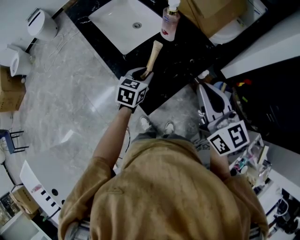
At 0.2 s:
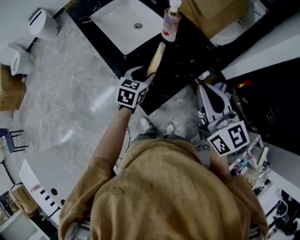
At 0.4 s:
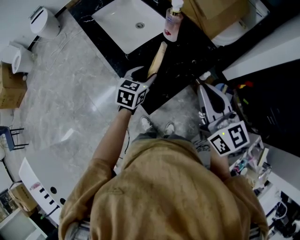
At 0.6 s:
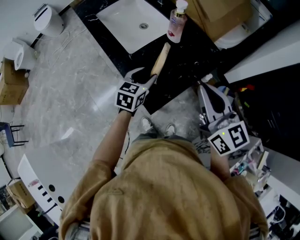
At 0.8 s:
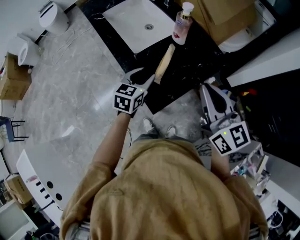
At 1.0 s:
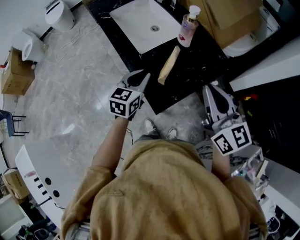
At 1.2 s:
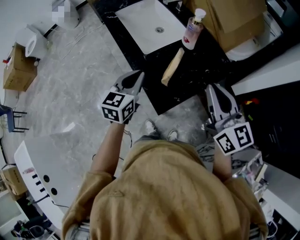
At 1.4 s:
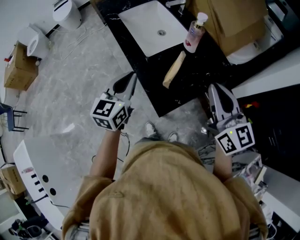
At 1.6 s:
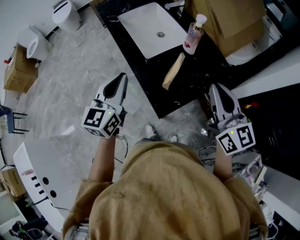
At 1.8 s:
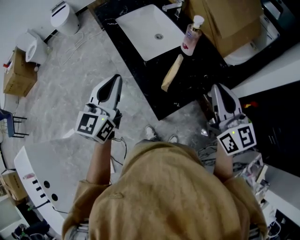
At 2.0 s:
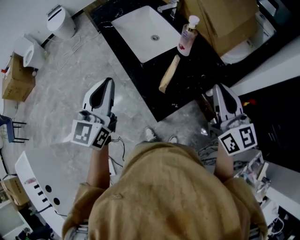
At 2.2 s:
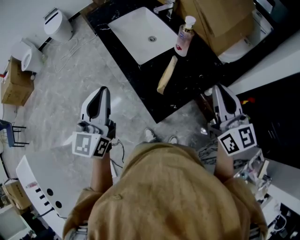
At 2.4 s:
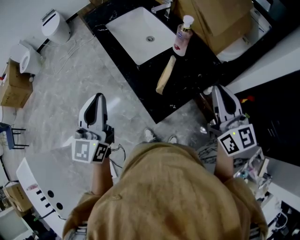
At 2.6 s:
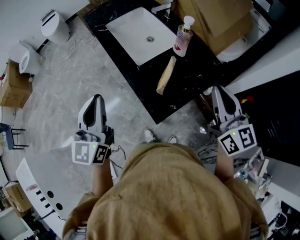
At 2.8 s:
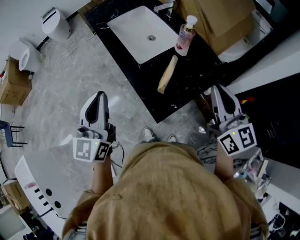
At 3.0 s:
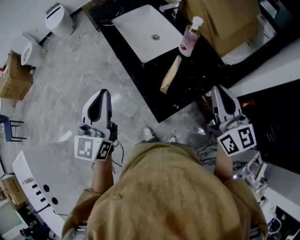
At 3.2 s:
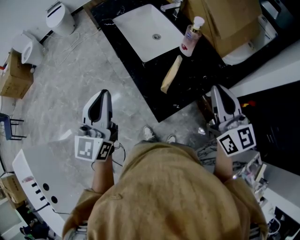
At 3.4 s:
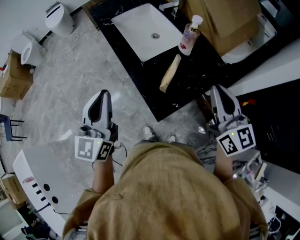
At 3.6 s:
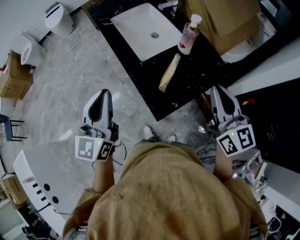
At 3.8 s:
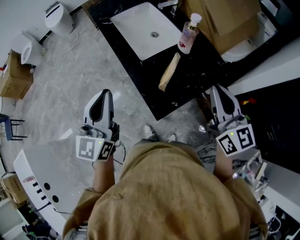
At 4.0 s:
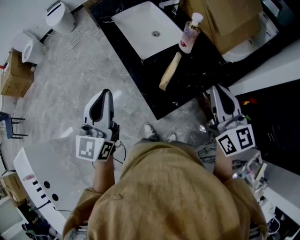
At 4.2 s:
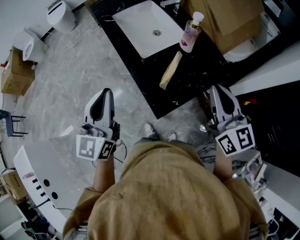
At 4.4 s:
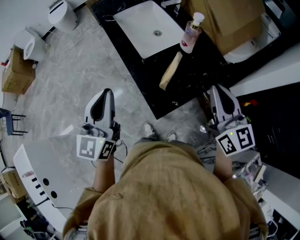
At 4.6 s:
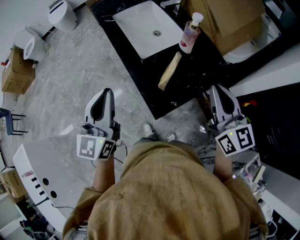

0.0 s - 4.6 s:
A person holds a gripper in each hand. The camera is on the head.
0.0 s - 1.6 s: The left gripper moves upward and to the left, approximately 25 cm, changes its angle by about 40 degrees, and opens, then closes once more.
1.6 s - 3.0 s: The left gripper ends up about 5 cm from where it was.
3.0 s - 4.6 s: There are only small adjustments of the grippers.

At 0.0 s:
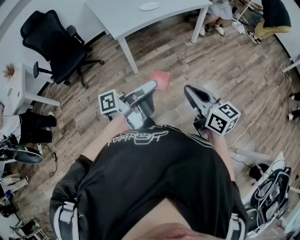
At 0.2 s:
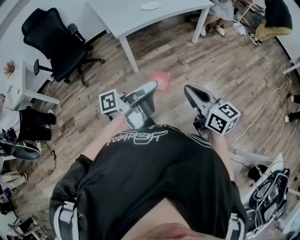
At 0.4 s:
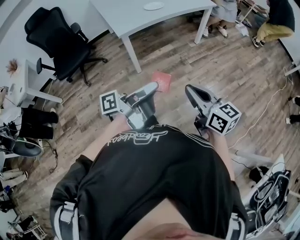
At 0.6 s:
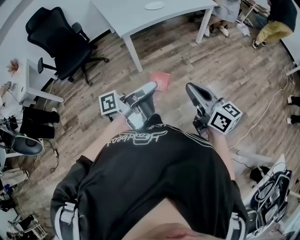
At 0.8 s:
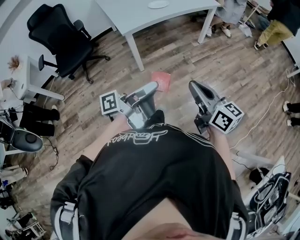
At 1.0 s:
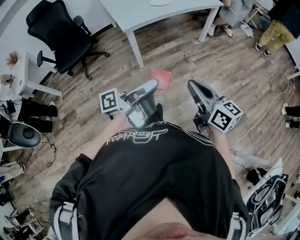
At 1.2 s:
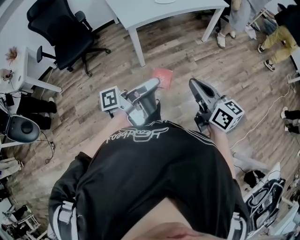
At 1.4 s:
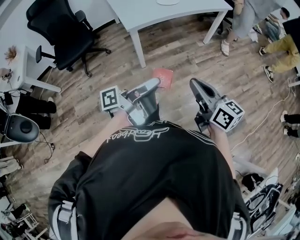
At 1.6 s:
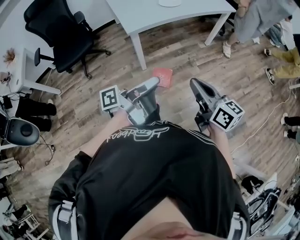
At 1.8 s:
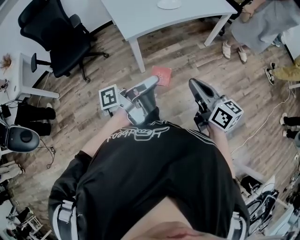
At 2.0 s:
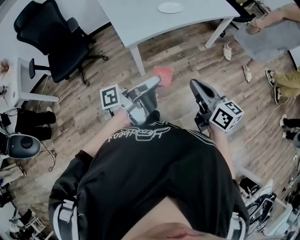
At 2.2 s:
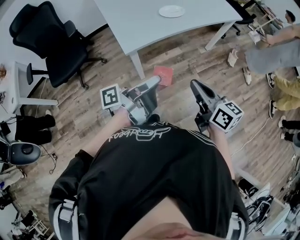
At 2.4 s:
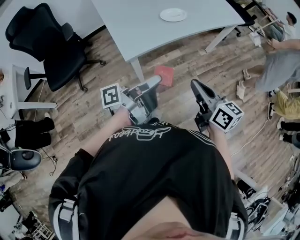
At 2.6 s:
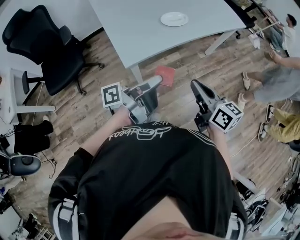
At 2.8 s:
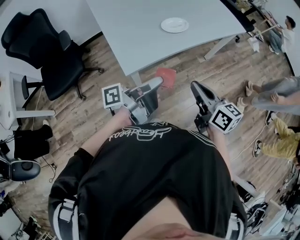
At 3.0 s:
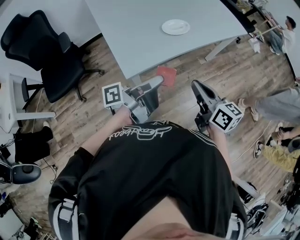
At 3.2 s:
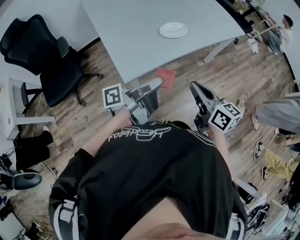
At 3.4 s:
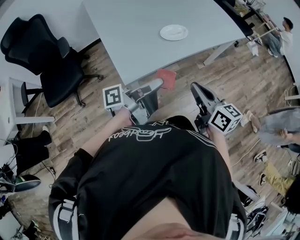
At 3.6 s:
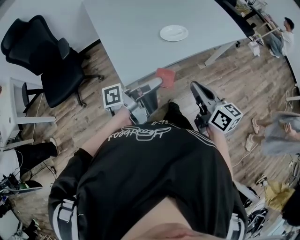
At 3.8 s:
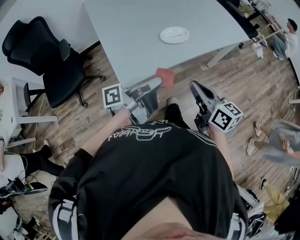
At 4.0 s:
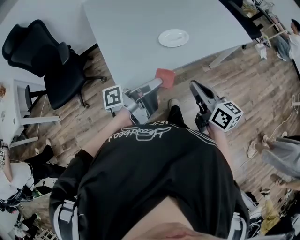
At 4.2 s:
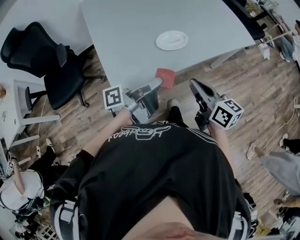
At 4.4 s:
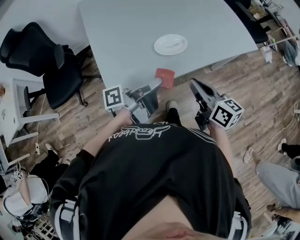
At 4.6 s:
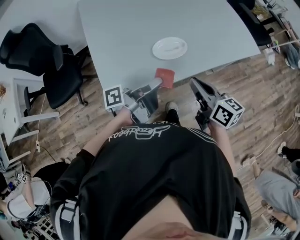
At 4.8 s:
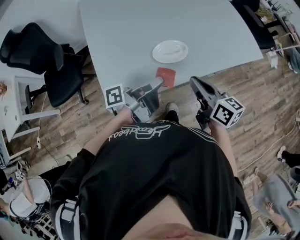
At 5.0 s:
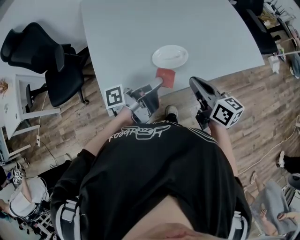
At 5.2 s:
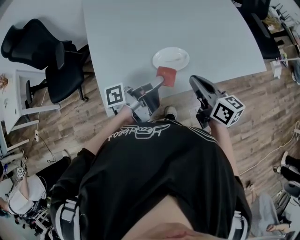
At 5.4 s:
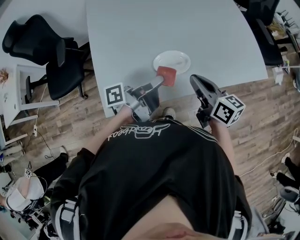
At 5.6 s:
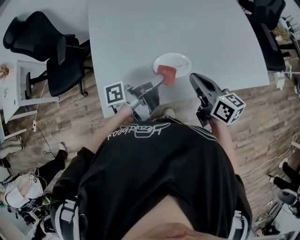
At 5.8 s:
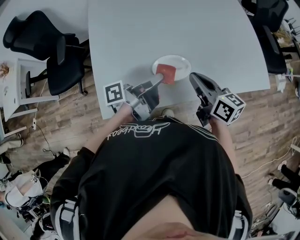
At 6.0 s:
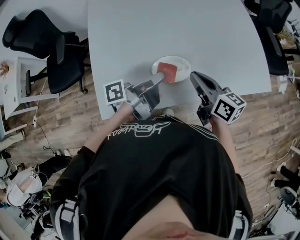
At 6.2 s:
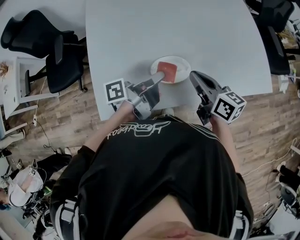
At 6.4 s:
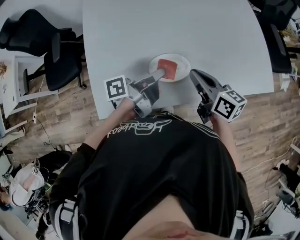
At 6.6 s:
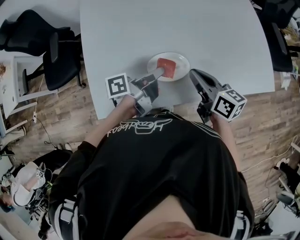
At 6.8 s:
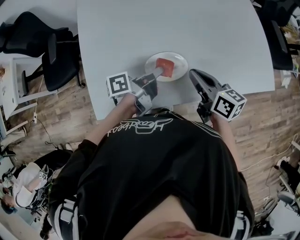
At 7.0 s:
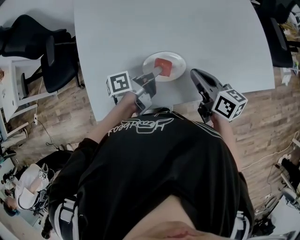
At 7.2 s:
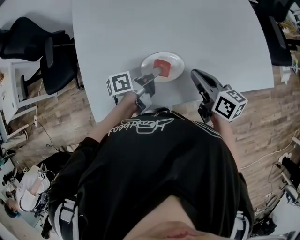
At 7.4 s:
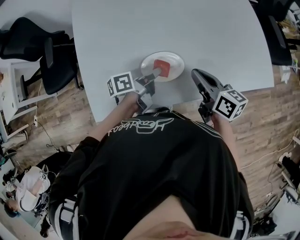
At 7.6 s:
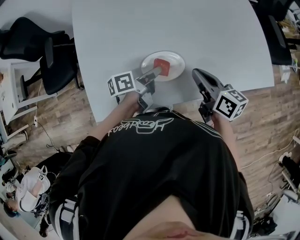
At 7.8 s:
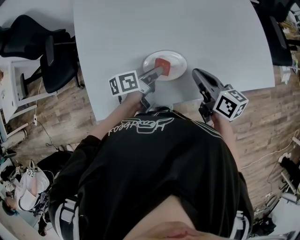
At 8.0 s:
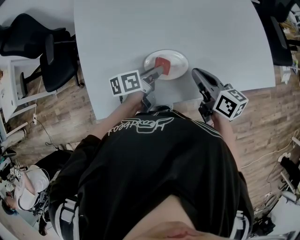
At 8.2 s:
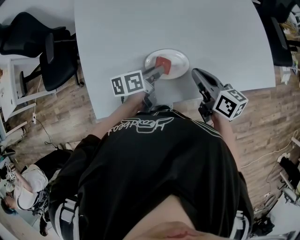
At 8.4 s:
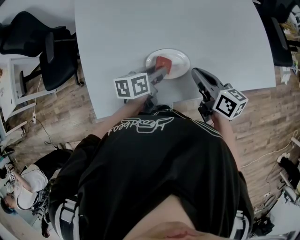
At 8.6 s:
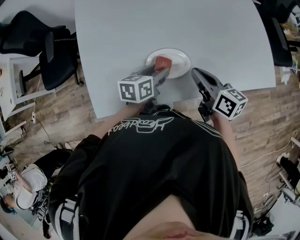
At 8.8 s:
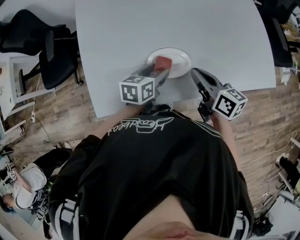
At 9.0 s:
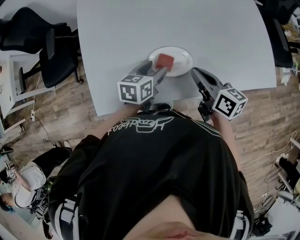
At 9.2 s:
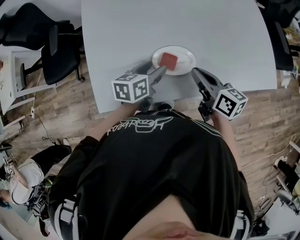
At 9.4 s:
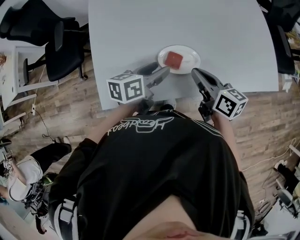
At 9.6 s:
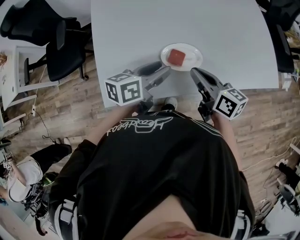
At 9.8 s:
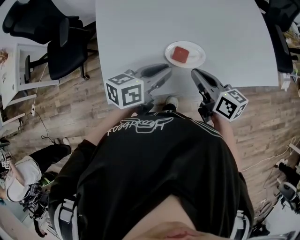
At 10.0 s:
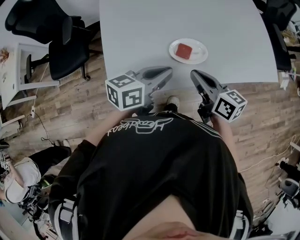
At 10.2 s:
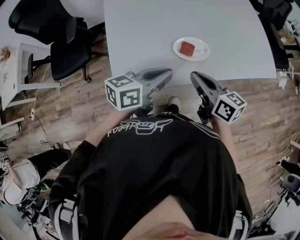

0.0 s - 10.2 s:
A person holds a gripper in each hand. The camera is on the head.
0.0 s - 1.4 s: The left gripper changes place by approximately 5 cm, while the right gripper is displaced forward by some 5 cm.
1.4 s - 3.0 s: The two grippers go roughly 35 cm forward.
3.0 s - 4.4 s: Both grippers move forward, approximately 15 cm.
4.4 s - 5.8 s: The two grippers go some 15 cm forward.
5.8 s - 7.2 s: The left gripper shifts about 10 cm downward, and changes its angle by roughly 20 degrees; the right gripper is displaced downward by roughly 5 cm.
7.2 s - 8.8 s: The left gripper rotates around the line of its fingers by approximately 40 degrees, clockwise from behind, and opens its fingers.
8.8 s - 10.2 s: The left gripper shifts about 20 cm upward, backward and to the left, turns by about 30 degrees, and closes its fingers; the right gripper moves backward, to the left and upward, roughly 15 cm.

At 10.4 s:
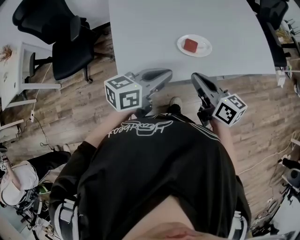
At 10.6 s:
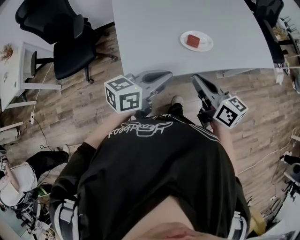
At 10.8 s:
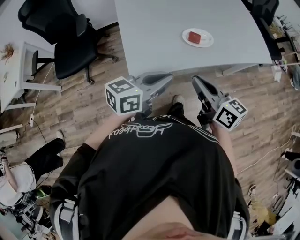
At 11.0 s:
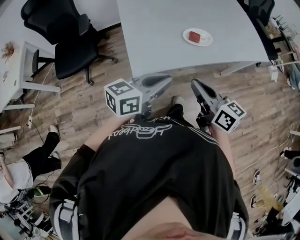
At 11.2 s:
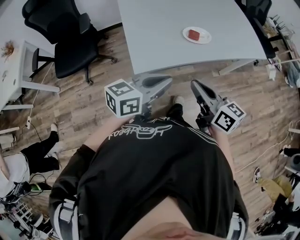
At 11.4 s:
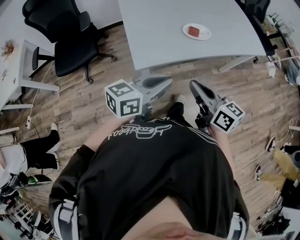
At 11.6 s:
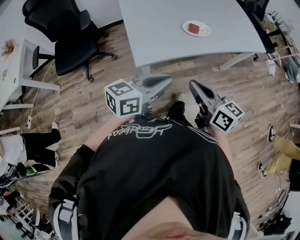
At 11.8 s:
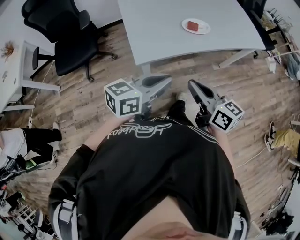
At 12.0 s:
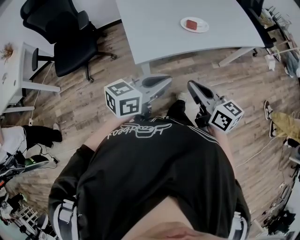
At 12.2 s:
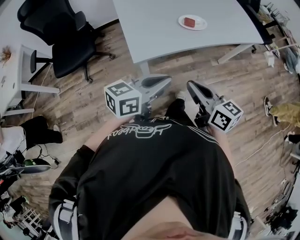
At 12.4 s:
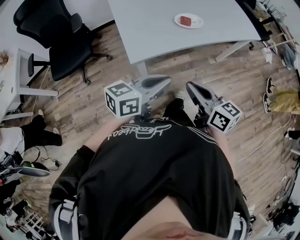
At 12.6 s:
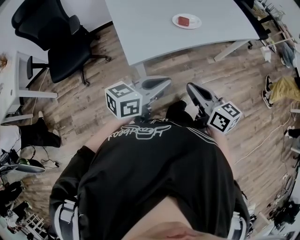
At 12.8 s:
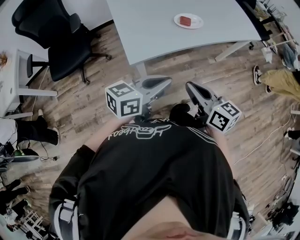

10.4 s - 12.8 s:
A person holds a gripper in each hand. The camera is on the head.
10.4 s - 11.6 s: Both grippers travel together backward, about 20 cm.
11.6 s - 12.8 s: The grippers stay close to where they were, moving slightly.

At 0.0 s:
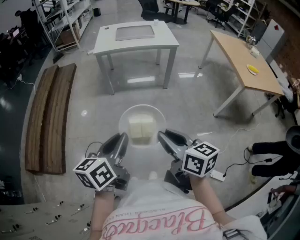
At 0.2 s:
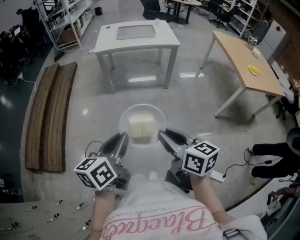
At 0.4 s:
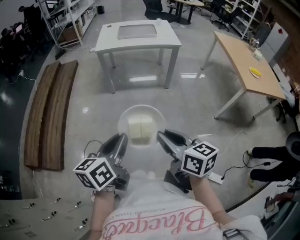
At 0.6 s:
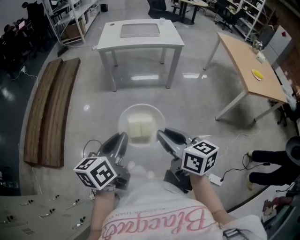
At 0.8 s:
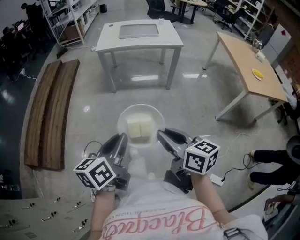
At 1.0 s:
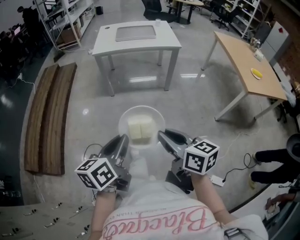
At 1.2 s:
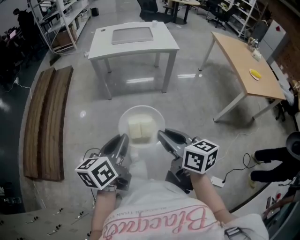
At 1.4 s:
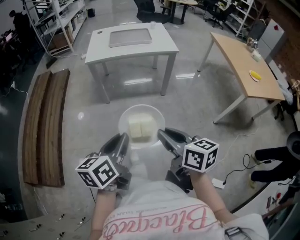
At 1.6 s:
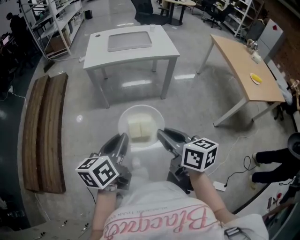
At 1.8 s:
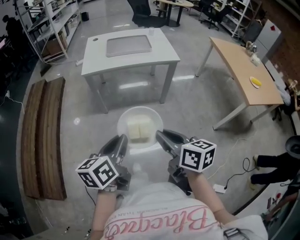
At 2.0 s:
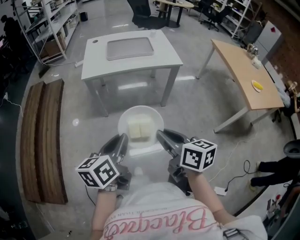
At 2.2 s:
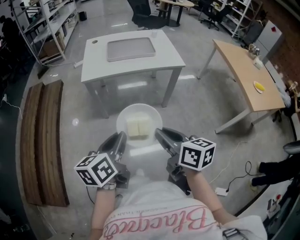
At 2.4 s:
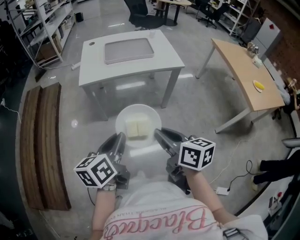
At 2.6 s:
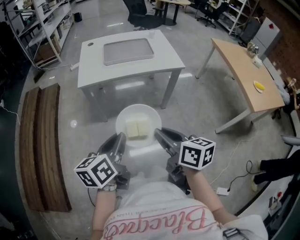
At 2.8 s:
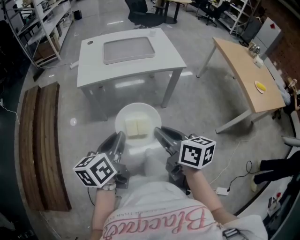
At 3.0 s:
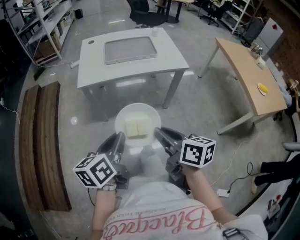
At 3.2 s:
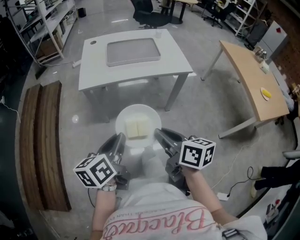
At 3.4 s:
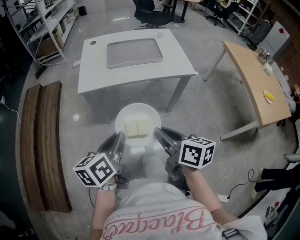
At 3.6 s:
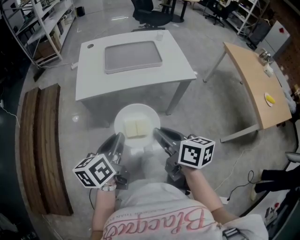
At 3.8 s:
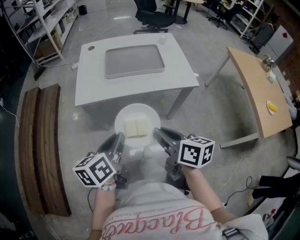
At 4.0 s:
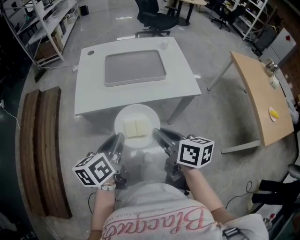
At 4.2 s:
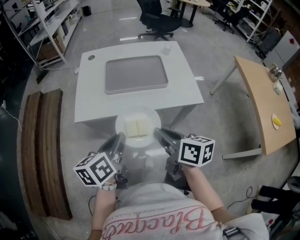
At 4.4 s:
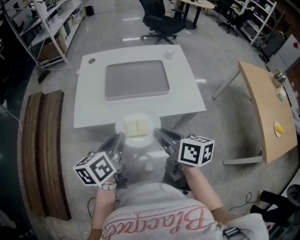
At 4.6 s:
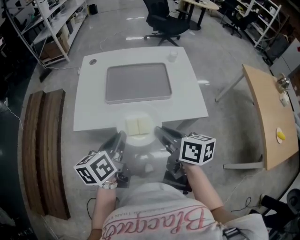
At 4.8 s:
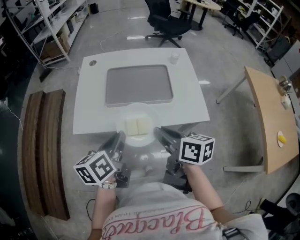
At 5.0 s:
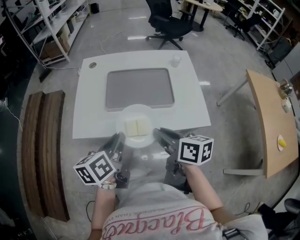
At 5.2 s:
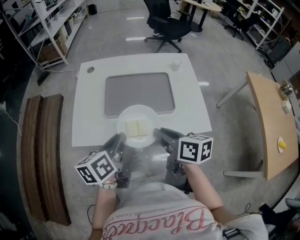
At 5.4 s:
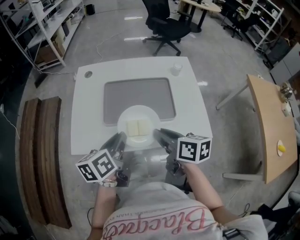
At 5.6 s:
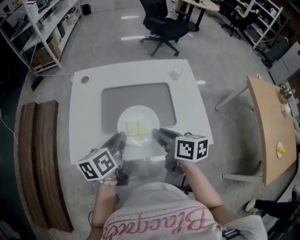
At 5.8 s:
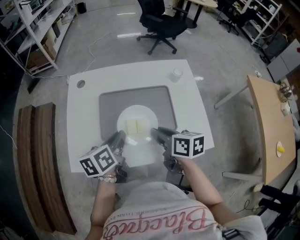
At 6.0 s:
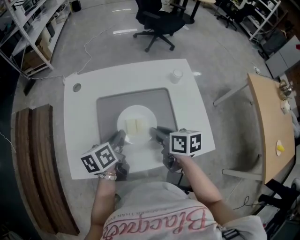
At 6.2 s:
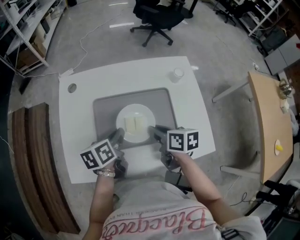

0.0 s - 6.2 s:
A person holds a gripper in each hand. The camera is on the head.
0.0 s - 1.6 s: The two grippers go approximately 15 cm forward.
1.6 s - 3.2 s: Both grippers travel together forward, roughly 20 cm.
3.2 s - 4.6 s: The grippers both shift forward by approximately 25 cm.
4.6 s - 6.2 s: The two grippers go about 25 cm forward and downward.
